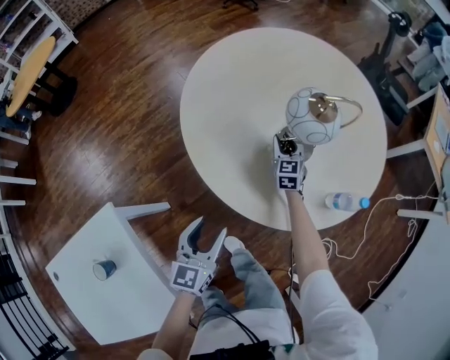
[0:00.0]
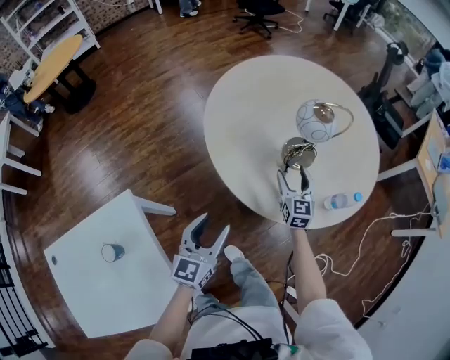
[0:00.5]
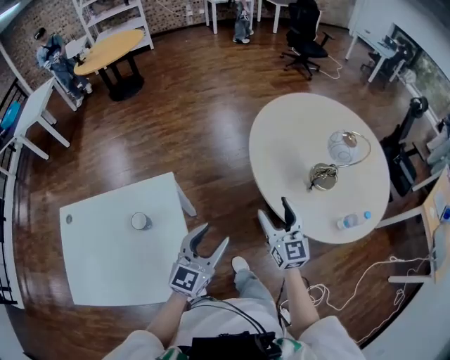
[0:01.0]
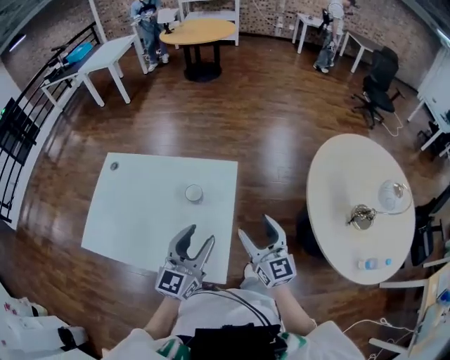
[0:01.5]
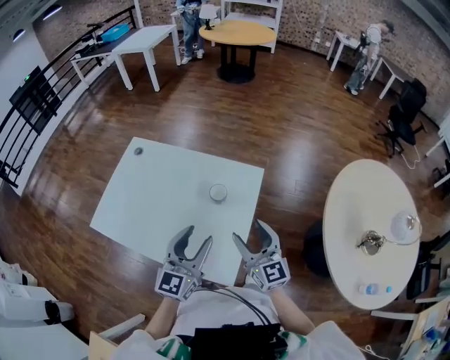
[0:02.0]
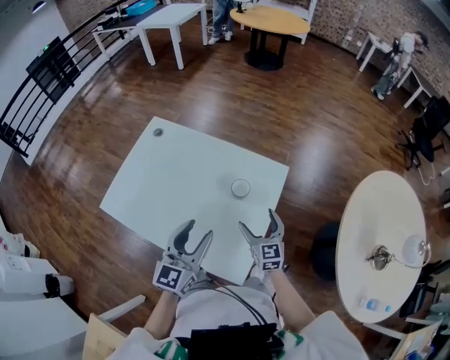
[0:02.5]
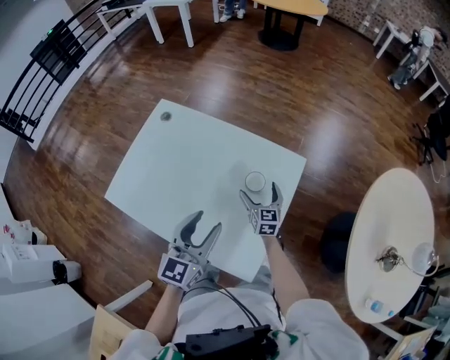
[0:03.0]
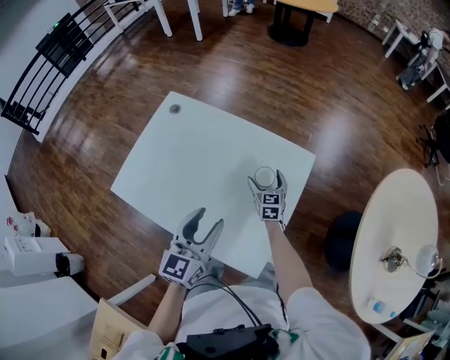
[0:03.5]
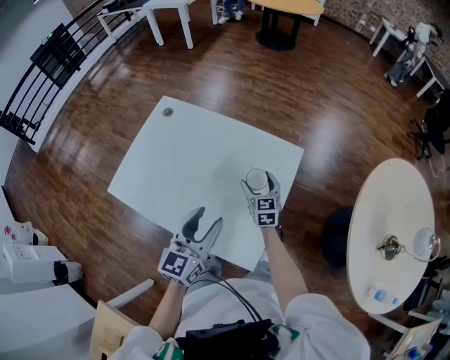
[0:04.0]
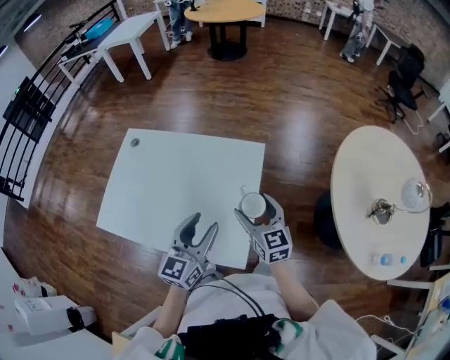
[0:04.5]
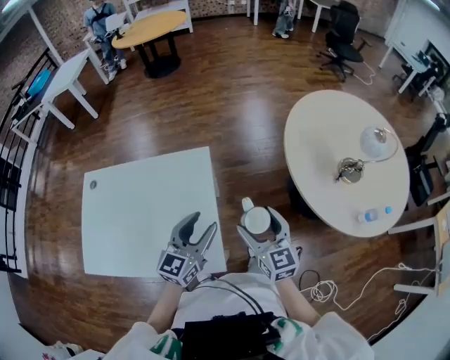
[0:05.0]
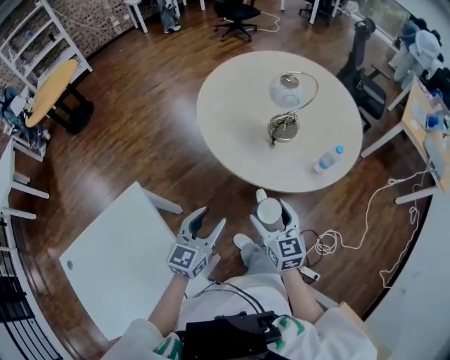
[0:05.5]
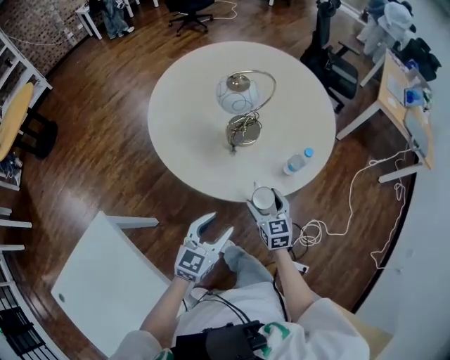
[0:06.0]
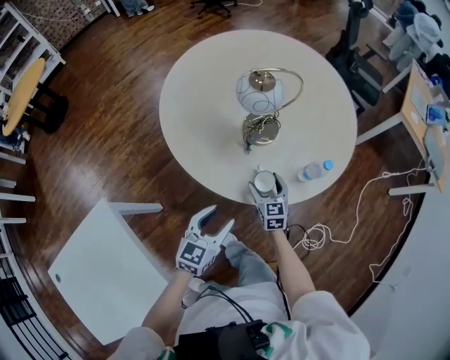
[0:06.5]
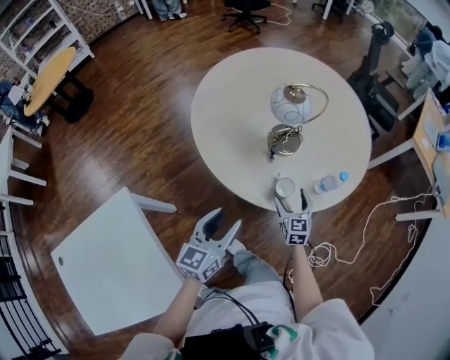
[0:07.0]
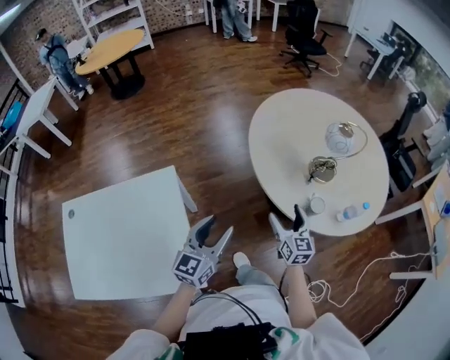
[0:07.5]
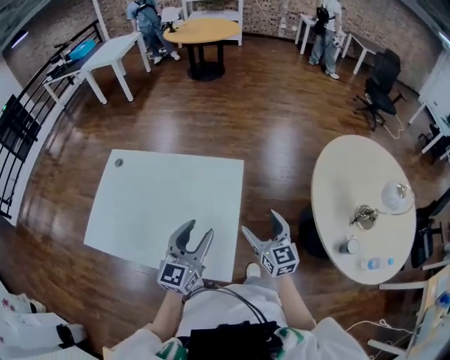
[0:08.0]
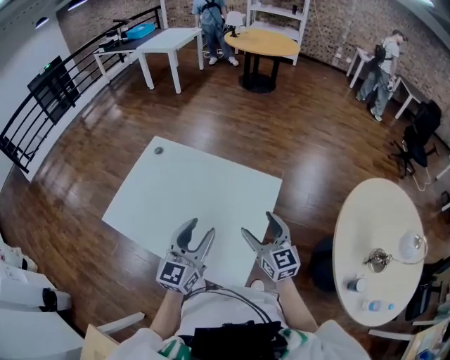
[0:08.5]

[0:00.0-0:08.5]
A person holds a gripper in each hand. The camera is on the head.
0.0 to 2.0 s: The pair of grippers is taken some 60 cm. The left gripper swivels roughly 60 degrees, while the right gripper swivels about 80 degrees.
2.0 to 4.0 s: The left gripper travels to the left by approximately 10 cm. Meanwhile the right gripper travels downward, forward and to the left by roughly 25 cm, and changes its angle by some 20 degrees.
4.0 to 6.5 s: The two grippers travel together, roughly 70 cm. The left gripper turns by approximately 80 degrees; the right gripper changes its angle by approximately 70 degrees.
6.5 to 8.5 s: The two grippers travel together, roughly 60 cm. The left gripper turns by roughly 80 degrees. The right gripper changes its angle by some 80 degrees.

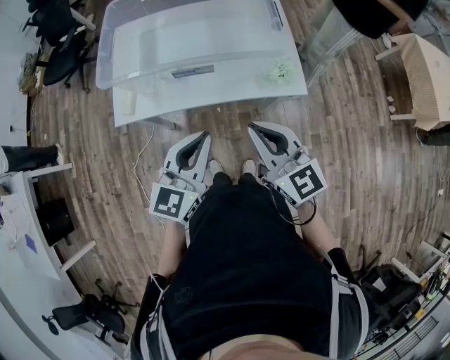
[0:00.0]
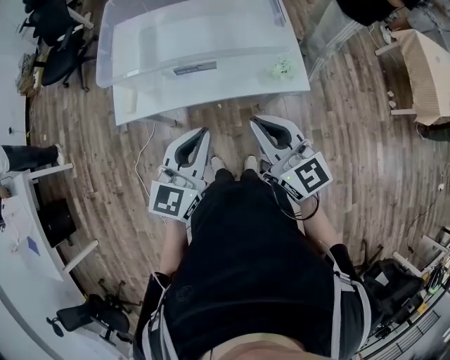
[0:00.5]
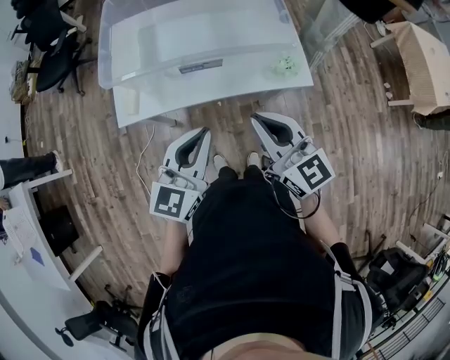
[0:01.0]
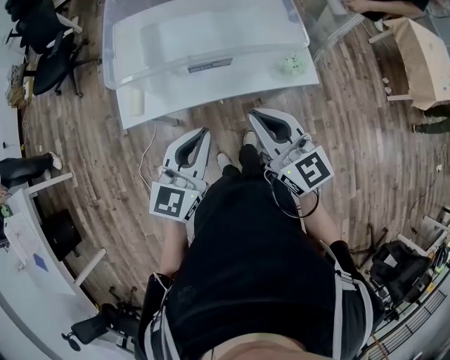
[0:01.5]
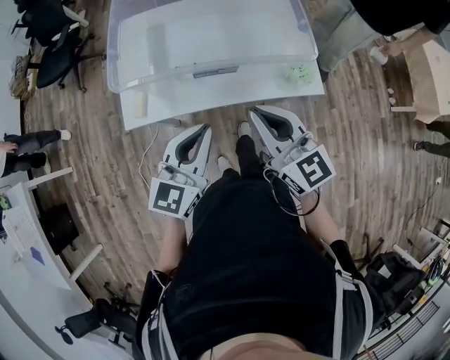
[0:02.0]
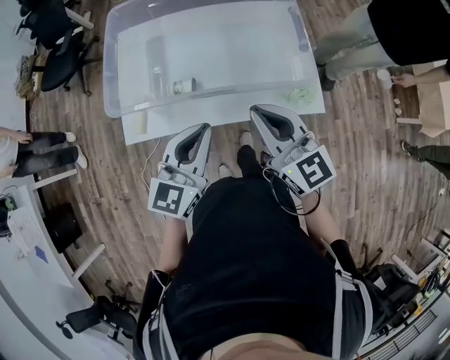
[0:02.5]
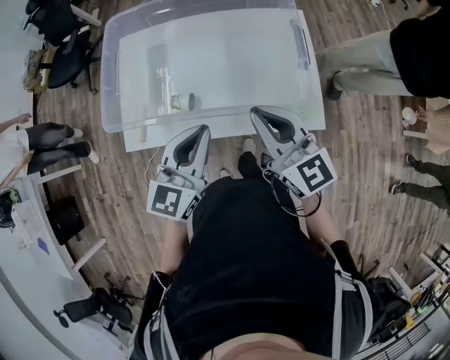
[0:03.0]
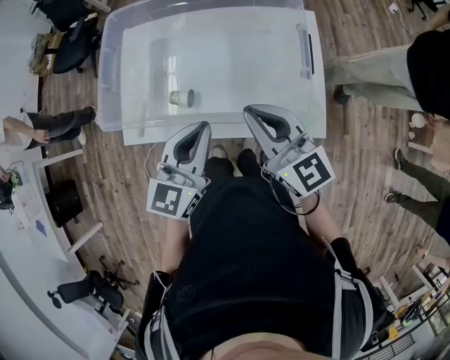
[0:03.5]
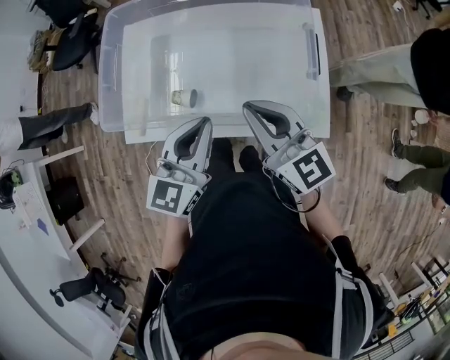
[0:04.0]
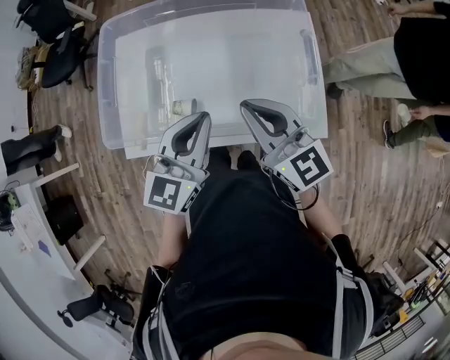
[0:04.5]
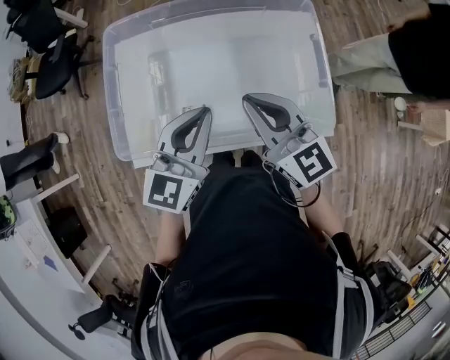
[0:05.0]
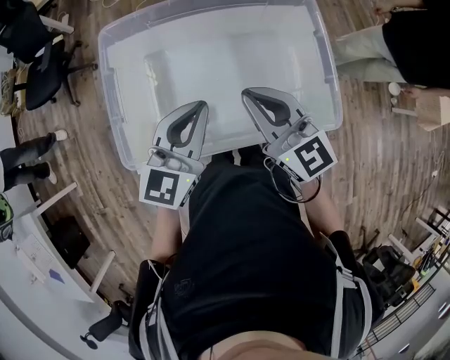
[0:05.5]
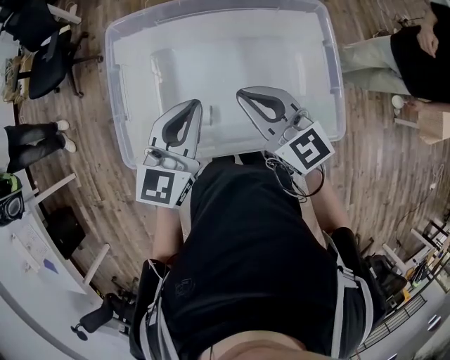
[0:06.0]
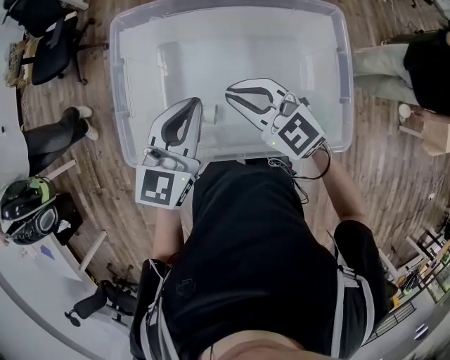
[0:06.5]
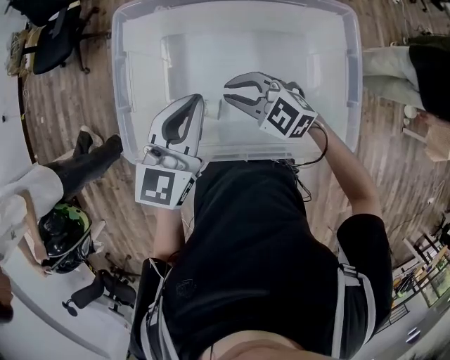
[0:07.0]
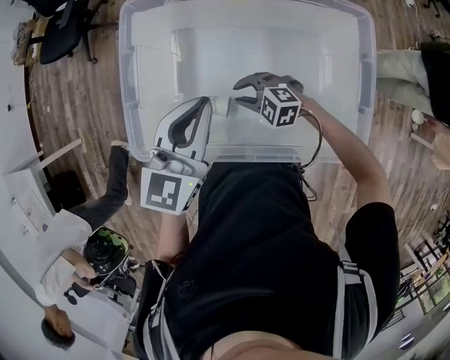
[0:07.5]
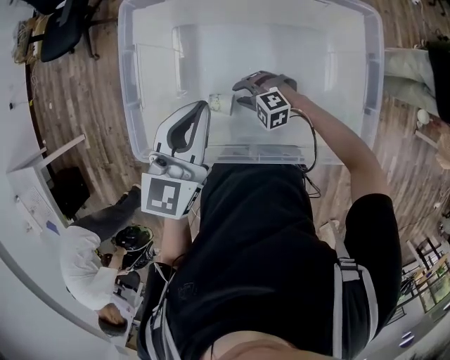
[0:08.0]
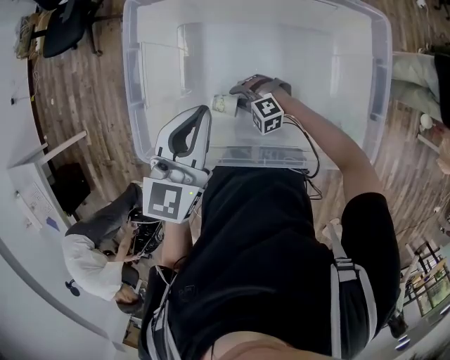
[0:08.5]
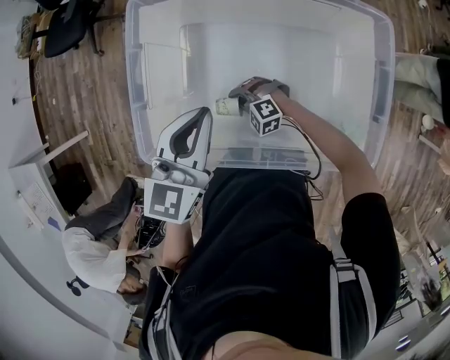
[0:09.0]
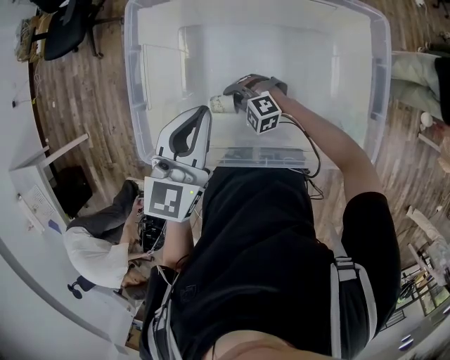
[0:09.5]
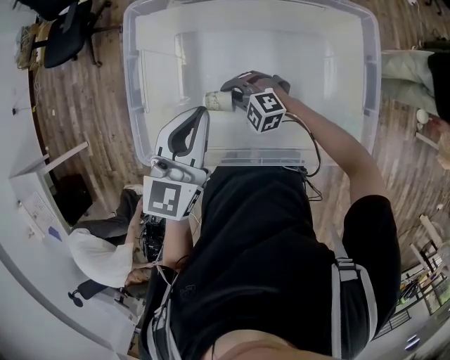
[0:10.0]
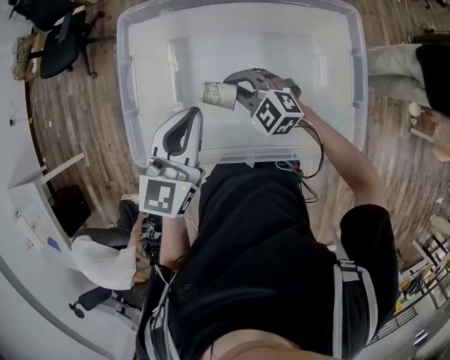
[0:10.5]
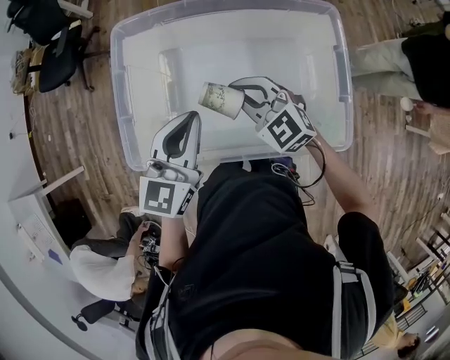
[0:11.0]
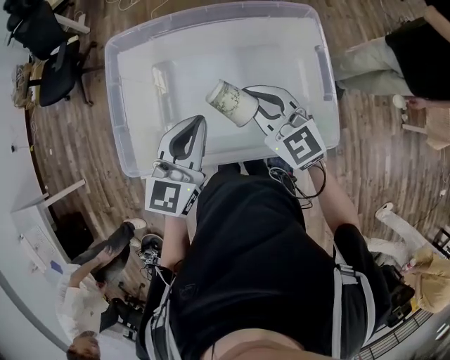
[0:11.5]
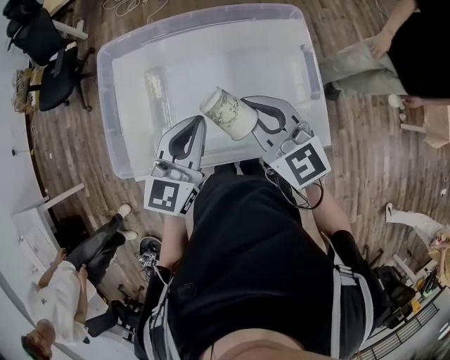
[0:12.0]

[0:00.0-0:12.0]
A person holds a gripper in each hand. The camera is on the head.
0.0 to 2.0 s: The two grippers go about 10 cm to the left and forward.
2.0 to 4.0 s: Both grippers move forward and to the right, approximately 20 cm.
4.0 to 6.0 s: The right gripper moves to the left and forward, approximately 15 cm. The left gripper travels forward and to the left by some 15 cm.
6.0 to 8.0 s: The right gripper goes approximately 30 cm downward, tilts its fingers approximately 40 degrees downward, and opens up.
8.0 to 10.0 s: The right gripper goes about 10 cm upward and forward, and closes its fingers.
10.0 to 12.0 s: The left gripper moves to the right and backward, about 15 cm, while the right gripper is displaced upward and to the right by some 35 cm, and points its fingers roughly 30 degrees further upward.

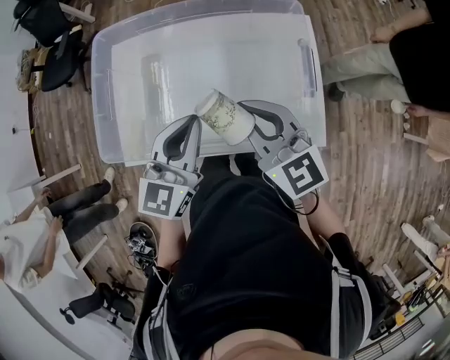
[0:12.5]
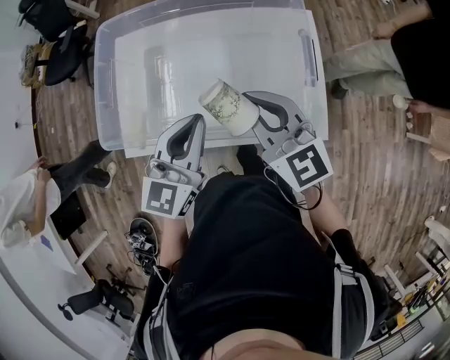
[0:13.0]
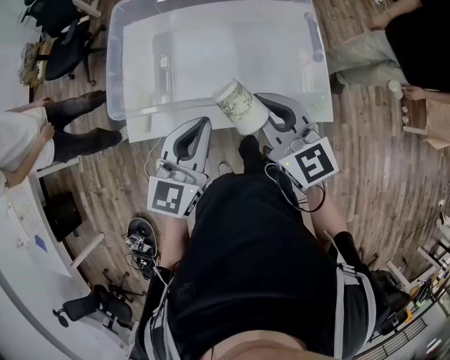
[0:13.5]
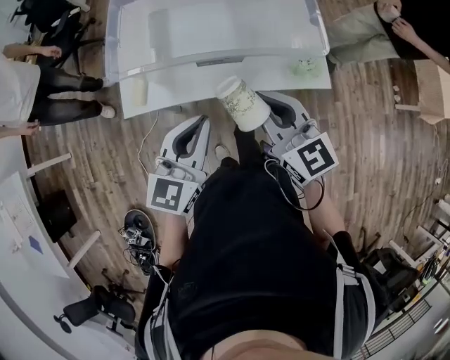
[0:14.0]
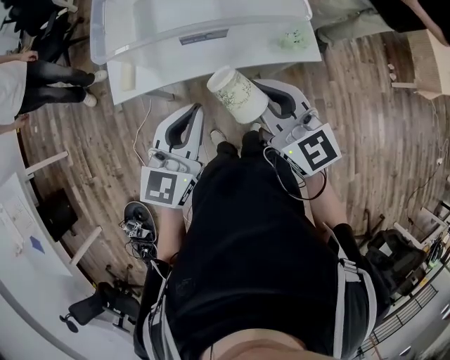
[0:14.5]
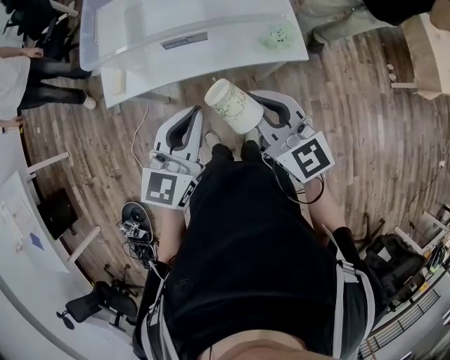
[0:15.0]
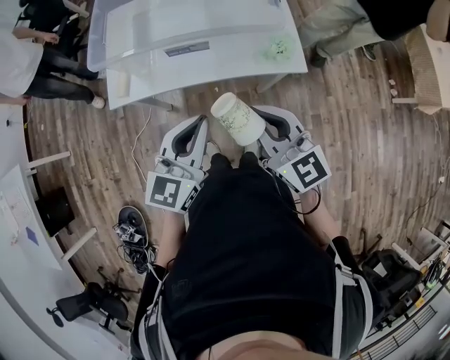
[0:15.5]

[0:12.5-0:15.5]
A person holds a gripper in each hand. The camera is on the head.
12.5 to 14.0 s: The right gripper goes roughly 25 cm backward. Meanwhile the left gripper moves backward and to the left, approximately 30 cm.
14.0 to 15.5 s: The right gripper shifts about 15 cm backward and to the right, while the left gripper moves to the right and backward, approximately 15 cm.

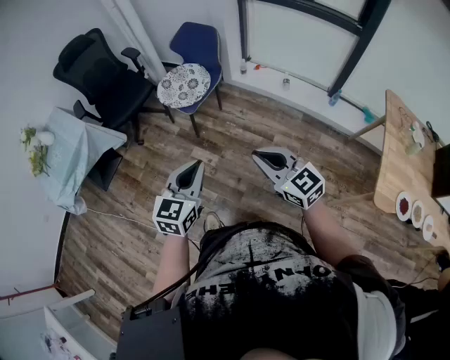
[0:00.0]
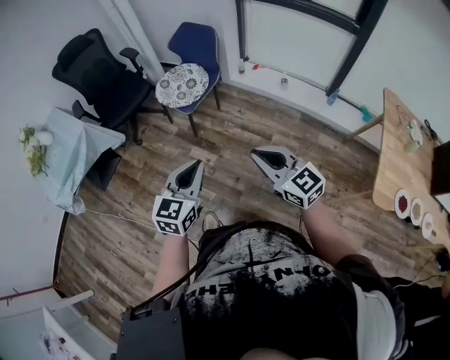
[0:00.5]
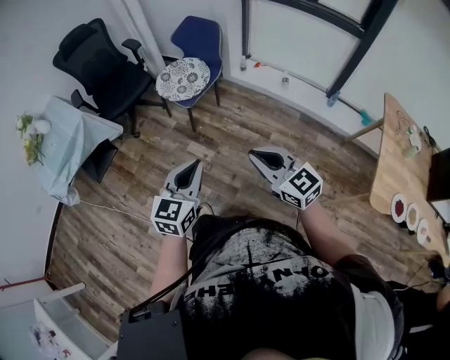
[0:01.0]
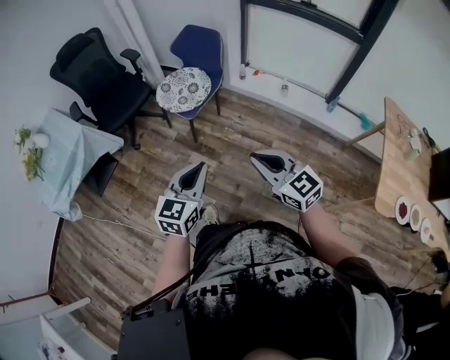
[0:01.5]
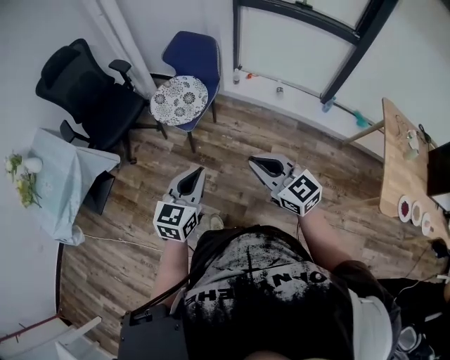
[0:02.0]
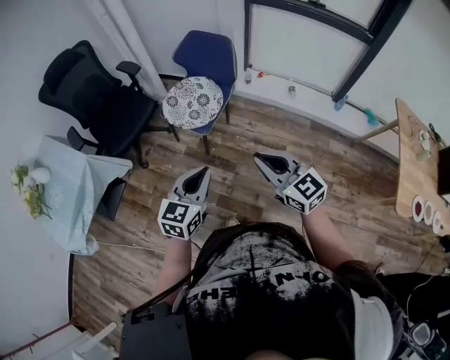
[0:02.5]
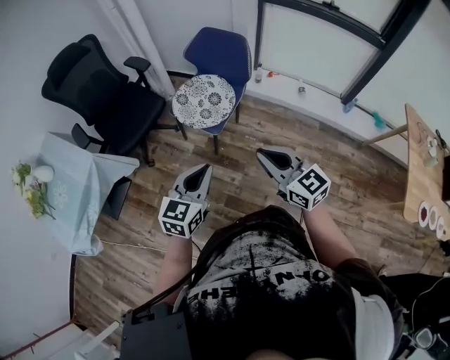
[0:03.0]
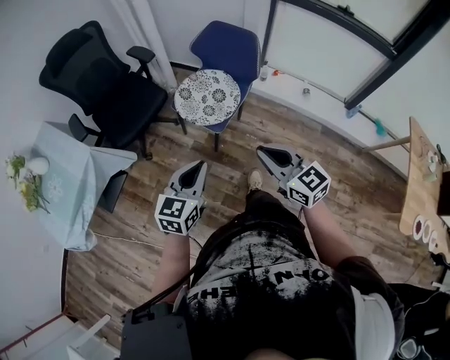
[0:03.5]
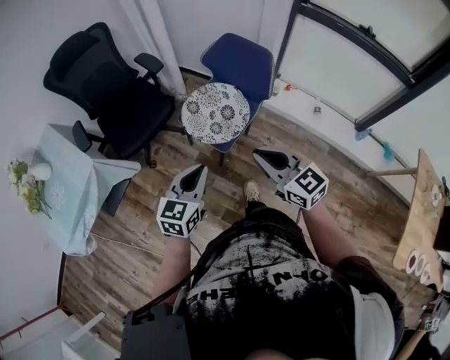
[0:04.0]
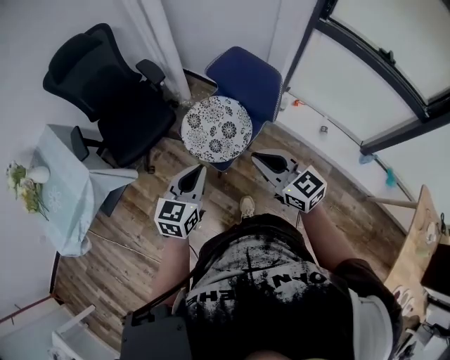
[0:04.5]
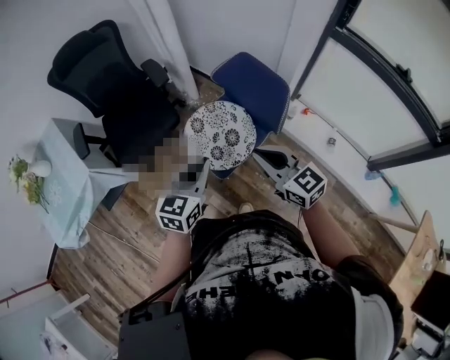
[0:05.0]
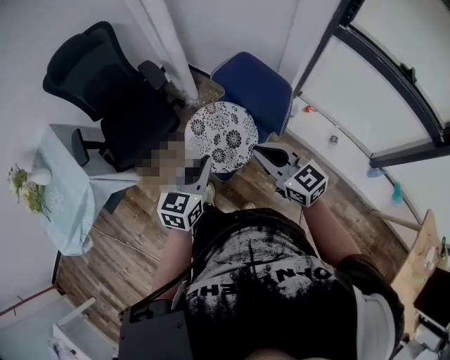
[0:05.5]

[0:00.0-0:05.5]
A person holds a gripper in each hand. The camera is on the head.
0.0 to 2.0 s: The grippers both shift forward and to the left by roughly 15 cm.
2.0 to 3.5 s: The left gripper travels to the left and forward by some 20 cm, while the right gripper moves forward and to the left, approximately 20 cm.
3.5 to 5.5 s: The two grippers go some 30 cm forward.
